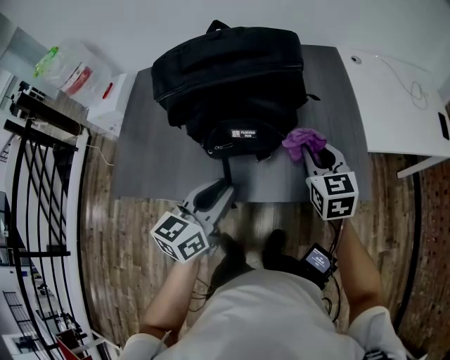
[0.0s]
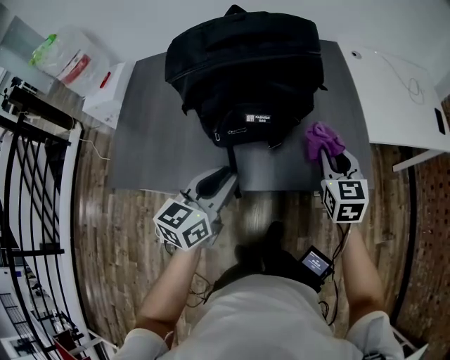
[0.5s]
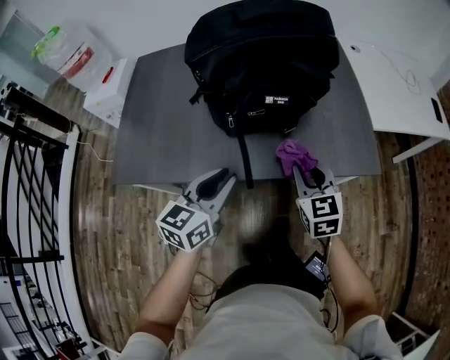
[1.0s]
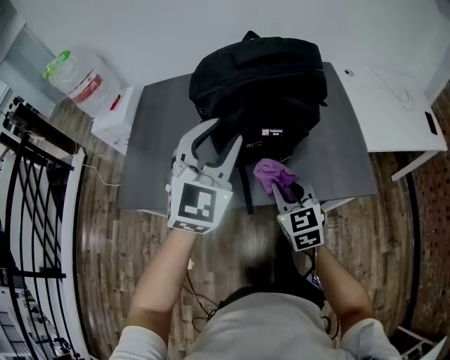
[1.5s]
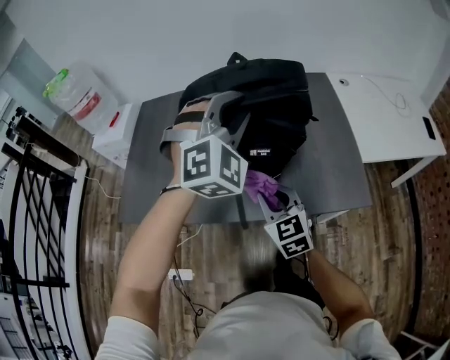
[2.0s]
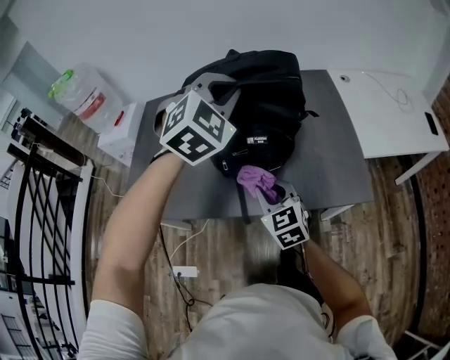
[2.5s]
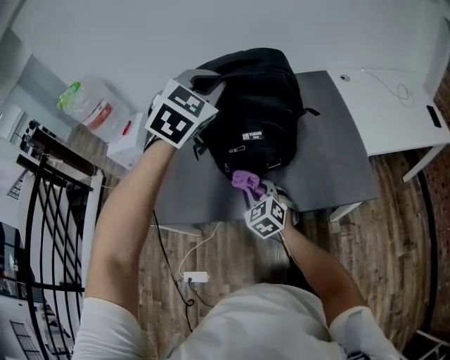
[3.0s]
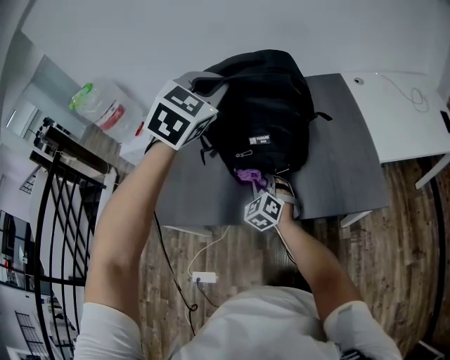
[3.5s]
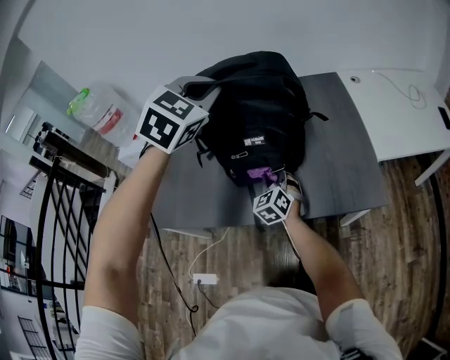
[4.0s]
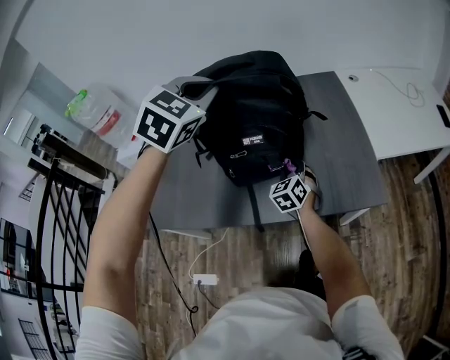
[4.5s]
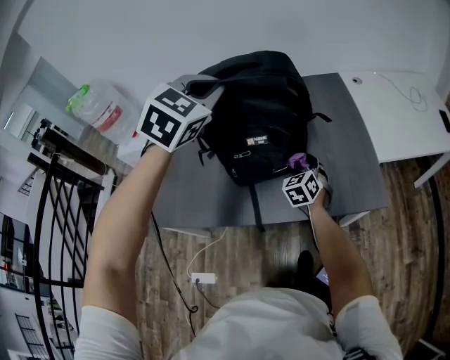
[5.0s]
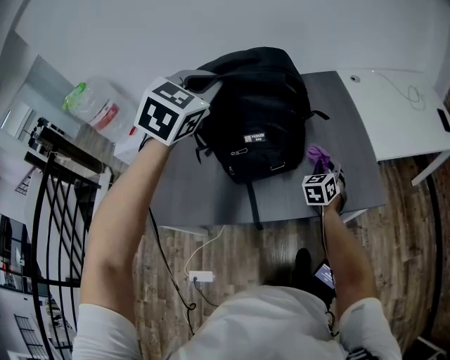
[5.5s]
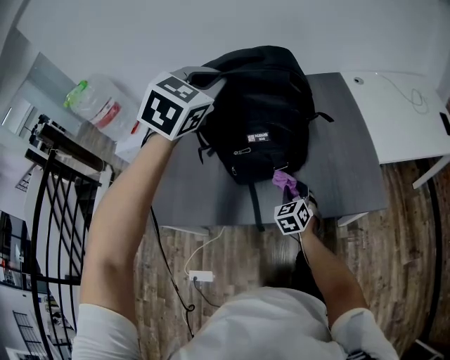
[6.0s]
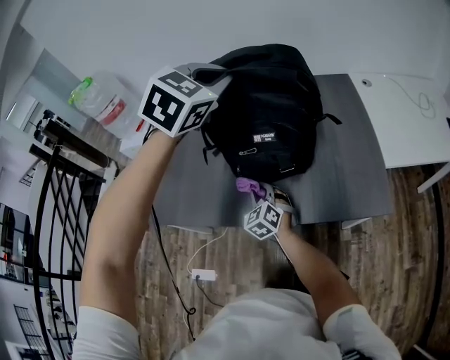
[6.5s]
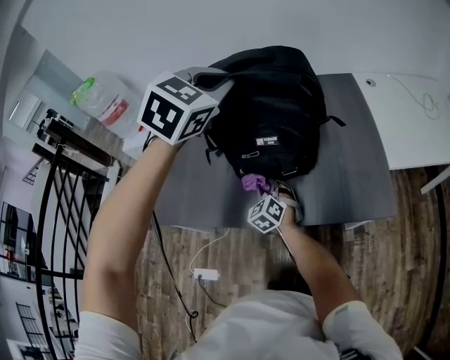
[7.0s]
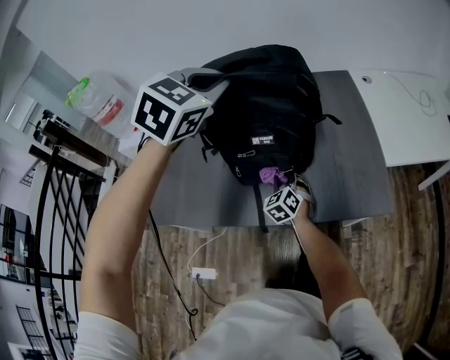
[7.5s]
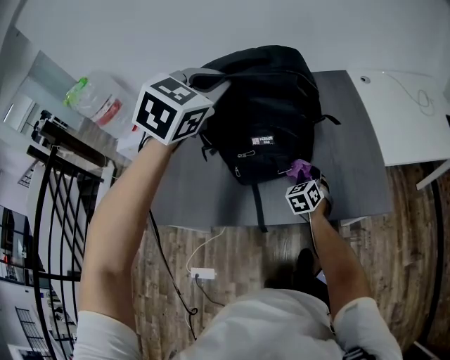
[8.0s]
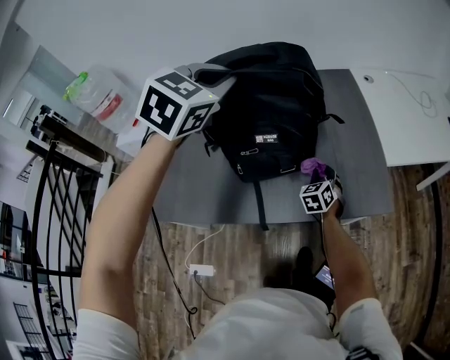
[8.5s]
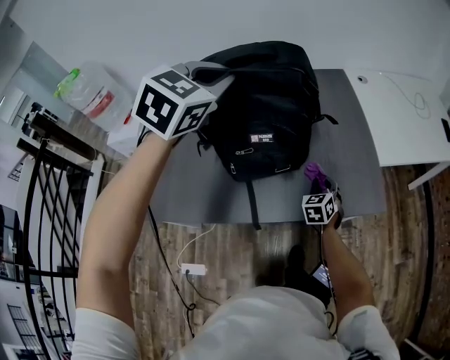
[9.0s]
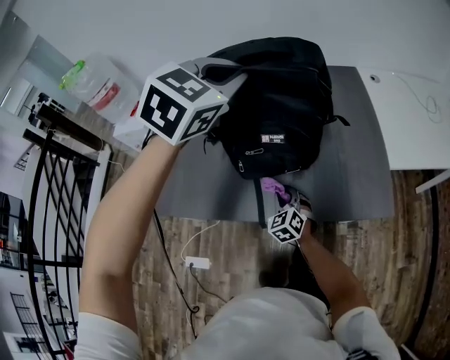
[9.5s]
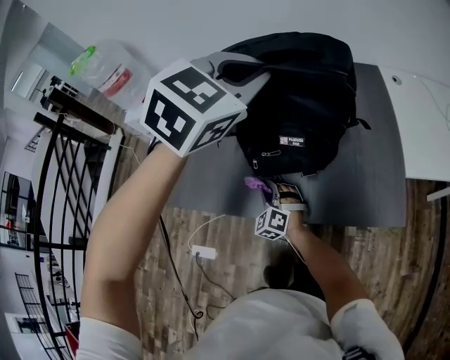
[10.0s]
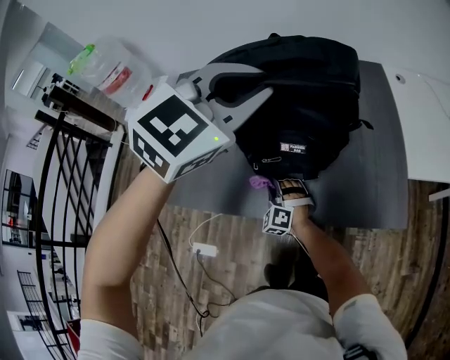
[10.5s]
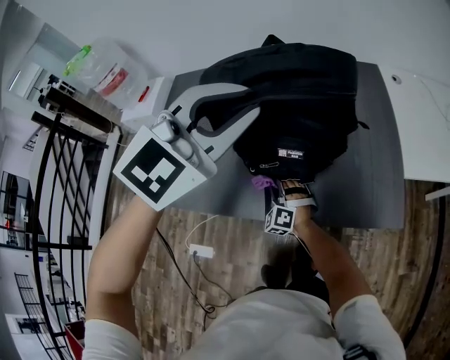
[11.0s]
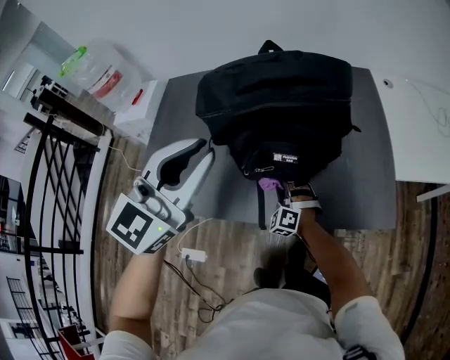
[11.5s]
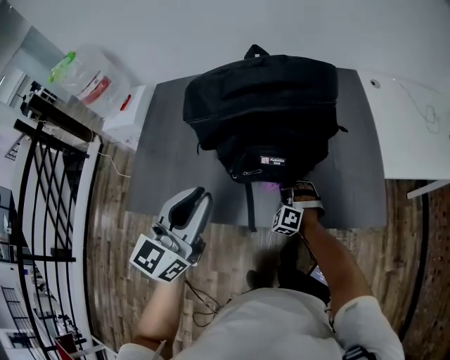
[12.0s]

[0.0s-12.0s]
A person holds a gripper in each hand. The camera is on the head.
0.0s to 2.0s: The left gripper moves upward and forward, approximately 20 cm, and twists about 80 degrees clockwise, seen from behind; the right gripper goes approximately 20 cm to the left and backward.
2.0s to 4.0s: The left gripper travels upward by roughly 5 cm, turns by roughly 30 degrees, and closes its fingers, while the right gripper shifts some 15 cm forward and downward, and rotates approximately 20 degrees.
4.0s to 6.0s: The right gripper shifts some 5 cm downward, and reaches some 20 cm to the right, then returns.
6.0s to 8.0s: The right gripper shifts approximately 5 cm forward, and reaches roughly 15 cm to the left, then returns.
8.0s to 10.0s: The right gripper travels to the left and backward by approximately 20 cm, and changes its angle by roughly 40 degrees.
10.0s to 12.0s: The right gripper goes roughly 15 cm to the right and forward. The left gripper travels backward, downward and to the left by roughly 20 cm, and swivels some 40 degrees.

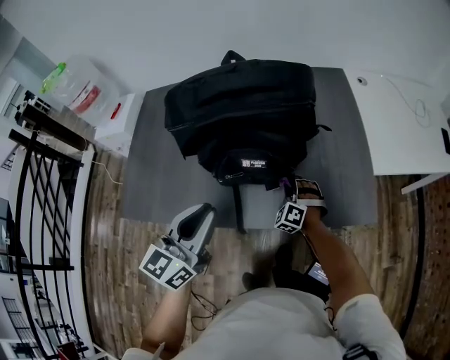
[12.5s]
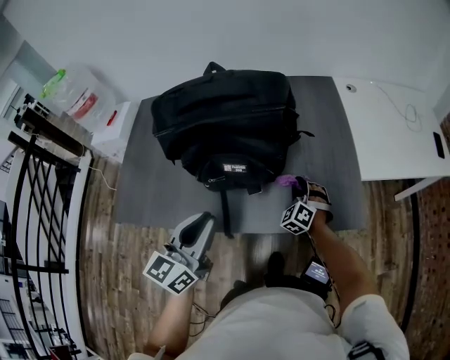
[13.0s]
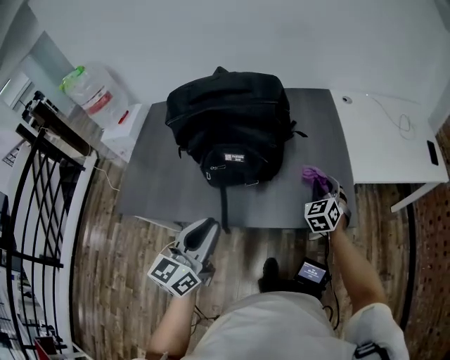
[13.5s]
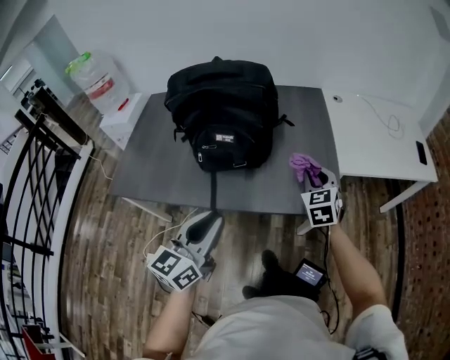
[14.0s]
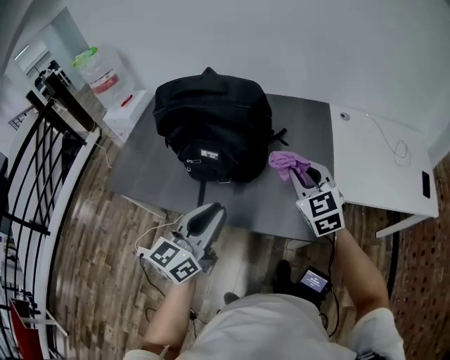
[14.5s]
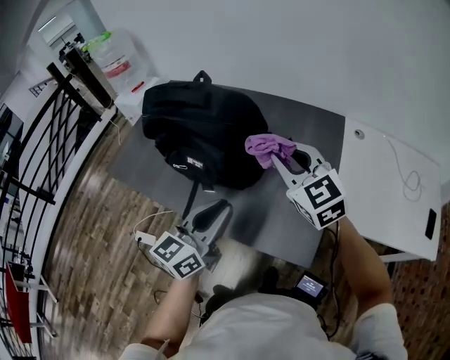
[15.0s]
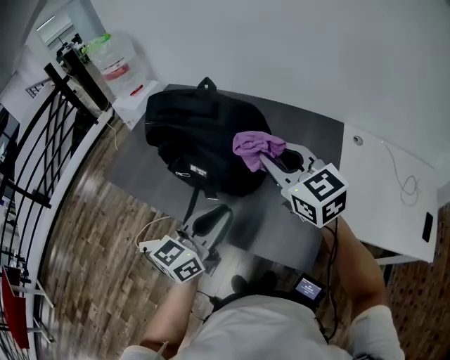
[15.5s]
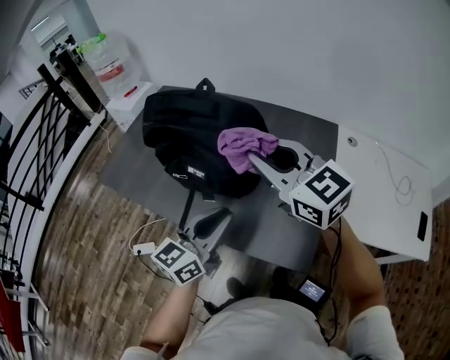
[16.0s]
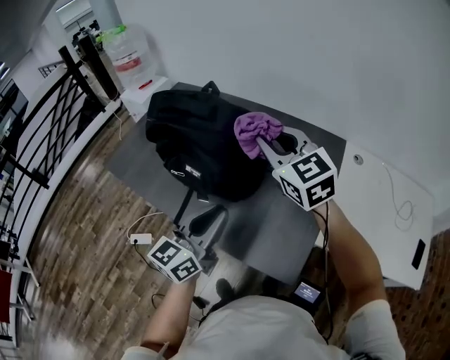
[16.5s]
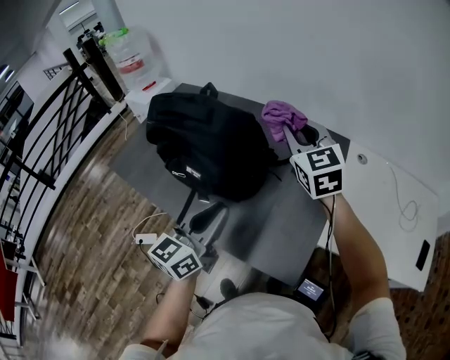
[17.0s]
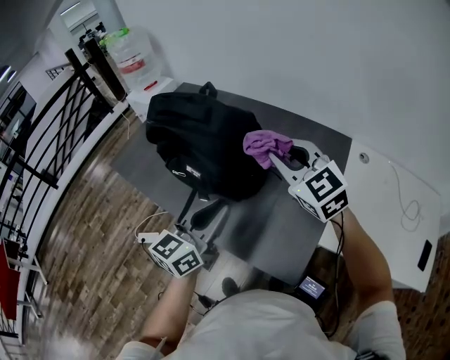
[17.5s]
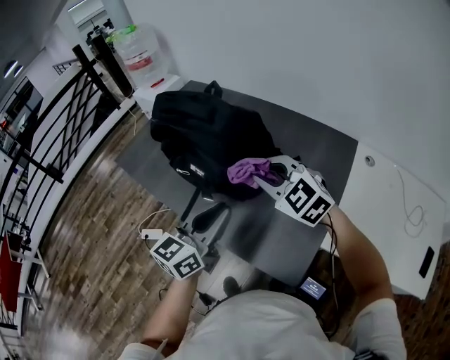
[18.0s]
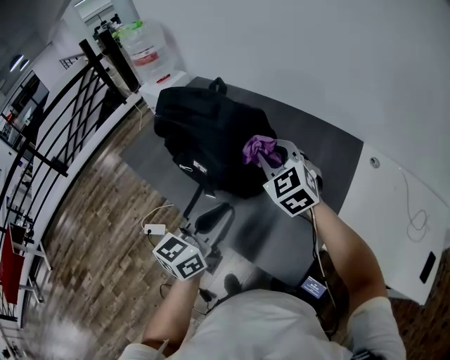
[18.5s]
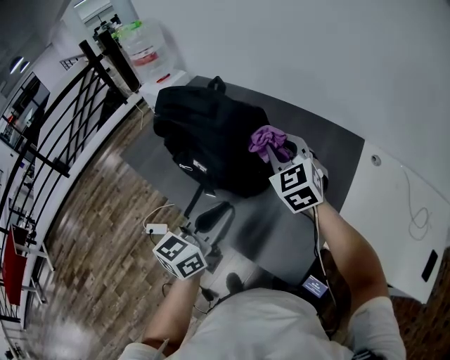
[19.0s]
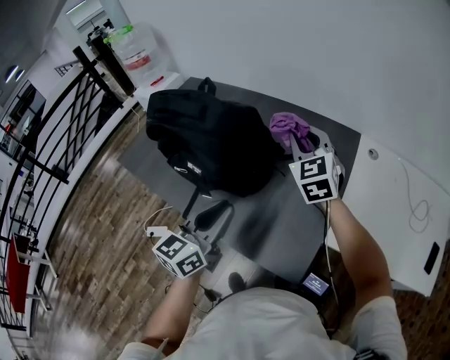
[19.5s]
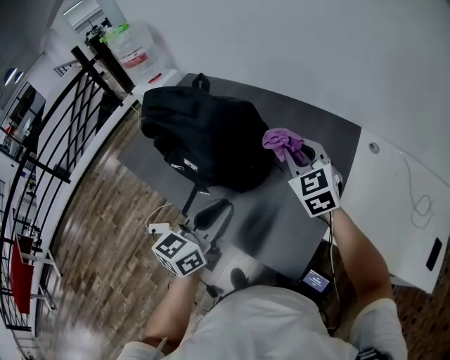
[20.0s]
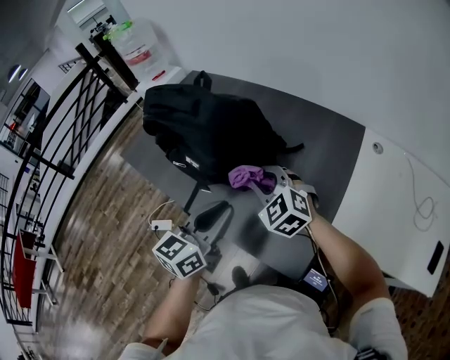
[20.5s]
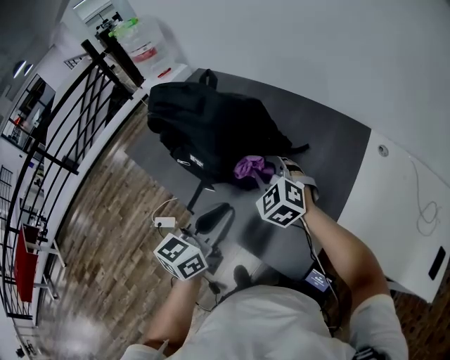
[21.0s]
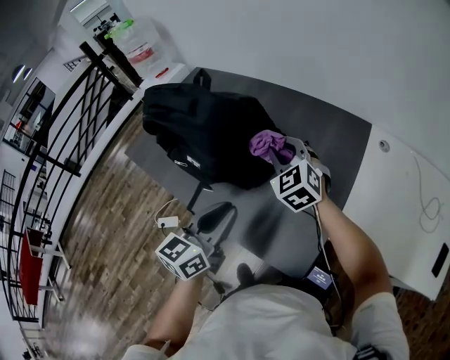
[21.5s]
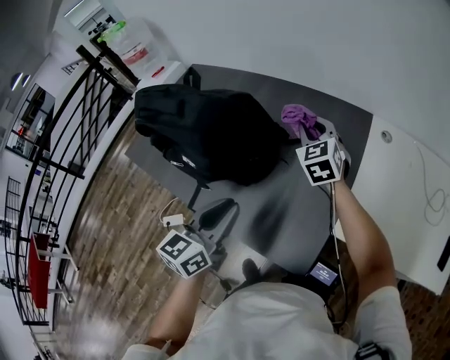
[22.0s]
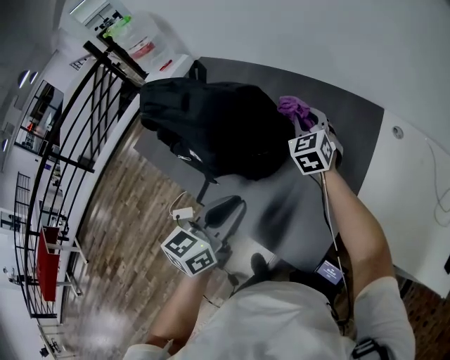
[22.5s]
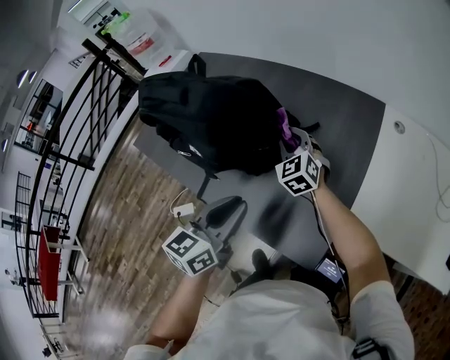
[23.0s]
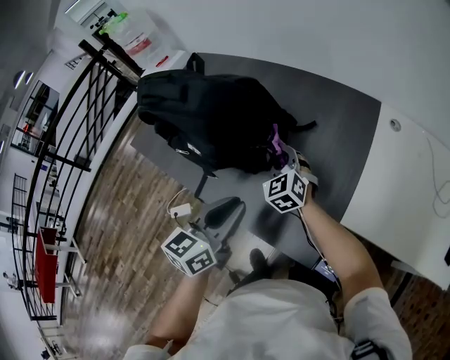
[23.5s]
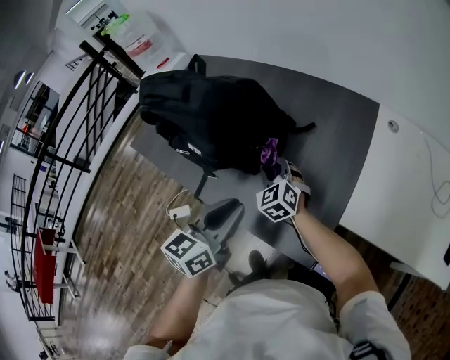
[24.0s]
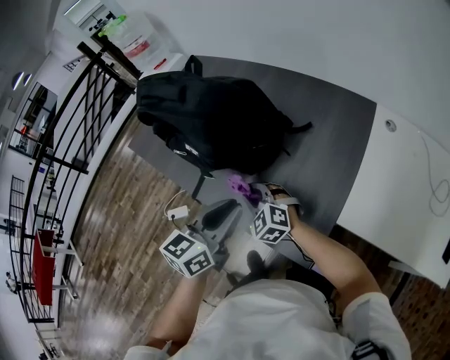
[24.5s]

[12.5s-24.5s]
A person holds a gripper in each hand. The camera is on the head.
12.5s to 14.5s: The left gripper is displaced to the right by roughly 20 cm, while the right gripper travels upward and to the right by roughly 35 cm, and changes its angle by about 50 degrees.
14.5s to 16.5s: The right gripper goes roughly 20 cm forward and upward, and changes its angle by roughly 30 degrees, while the left gripper heads forward and to the right, covering roughly 10 cm.
16.5s to 18.5s: The right gripper shifts some 10 cm downward, and moves about 10 cm to the right and comes back.
18.5s to 20.5s: The right gripper travels downward and backward by approximately 10 cm.
20.5s to 22.5s: The right gripper heads forward and to the right, covering roughly 20 cm, and turns by roughly 30 degrees.
22.5s to 24.5s: The right gripper shifts about 30 cm backward, to the left and downward, and changes its angle by about 40 degrees.

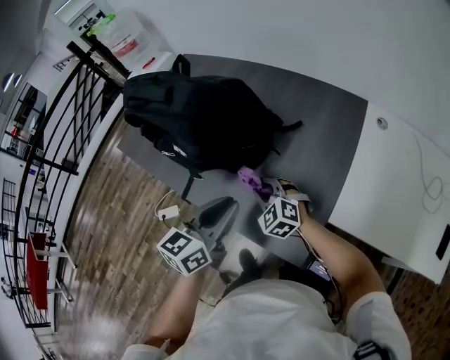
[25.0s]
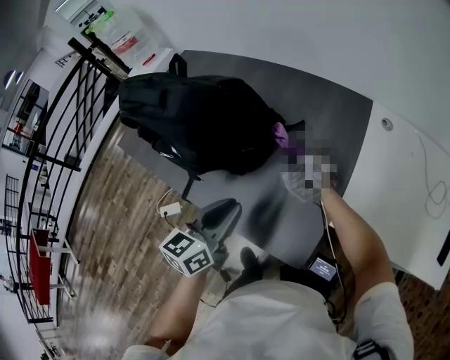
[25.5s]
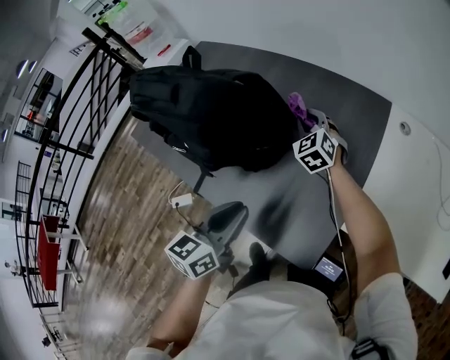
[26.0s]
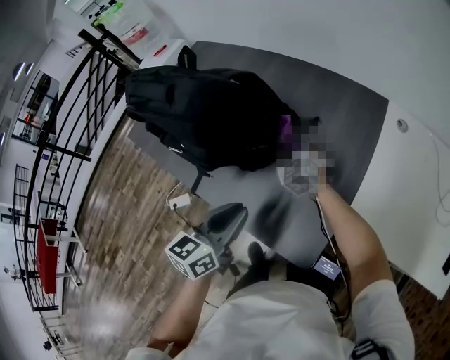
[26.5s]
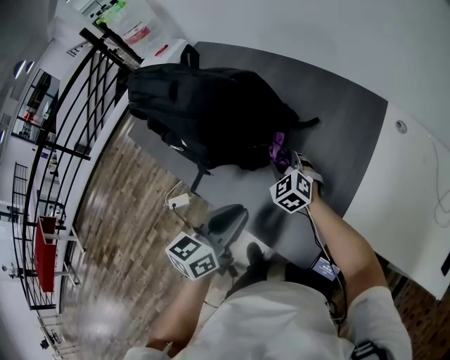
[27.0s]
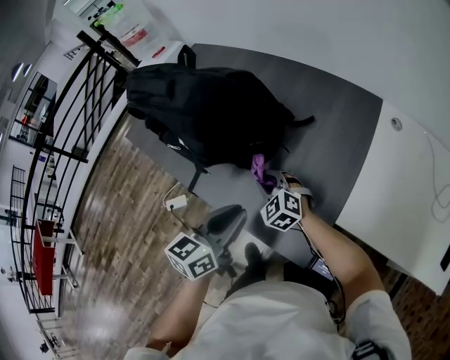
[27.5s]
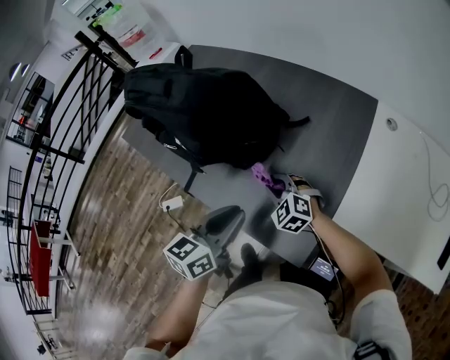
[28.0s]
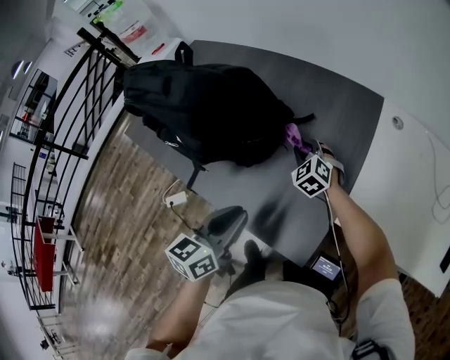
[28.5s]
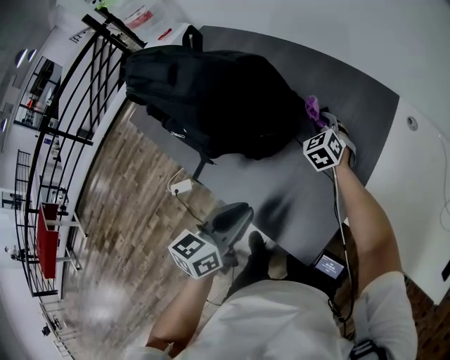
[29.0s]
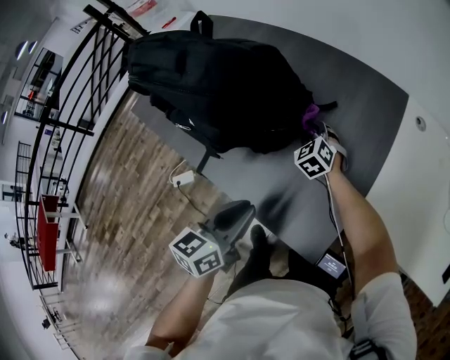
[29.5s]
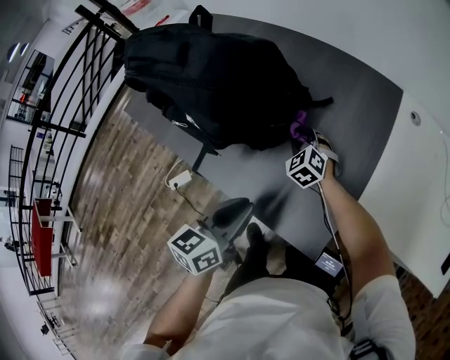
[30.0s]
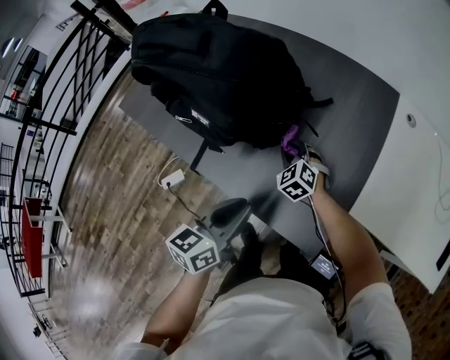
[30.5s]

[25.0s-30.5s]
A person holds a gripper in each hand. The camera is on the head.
25.0s to 27.0s: The right gripper moves forward, roughly 10 cm.
27.0s to 28.5s: The right gripper shifts some 10 cm to the right.
28.5s to 30.5s: The left gripper changes place by some 5 cm; the right gripper shifts about 10 cm to the left, backward and downward.
